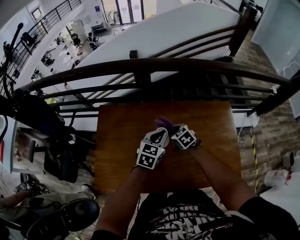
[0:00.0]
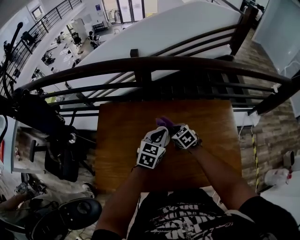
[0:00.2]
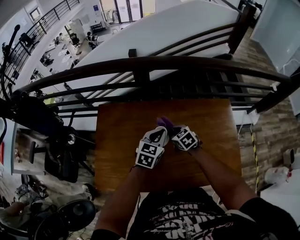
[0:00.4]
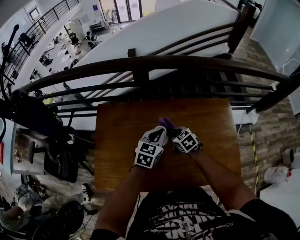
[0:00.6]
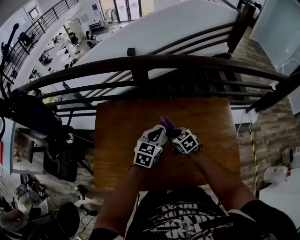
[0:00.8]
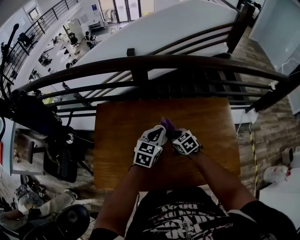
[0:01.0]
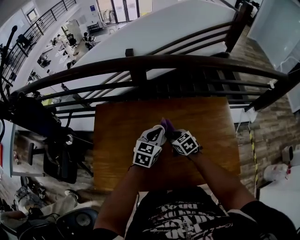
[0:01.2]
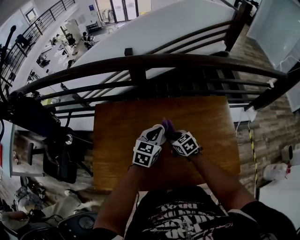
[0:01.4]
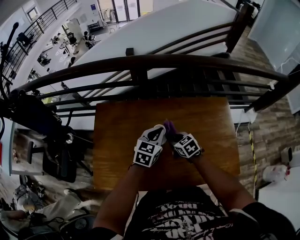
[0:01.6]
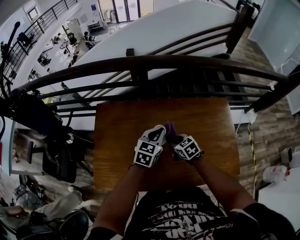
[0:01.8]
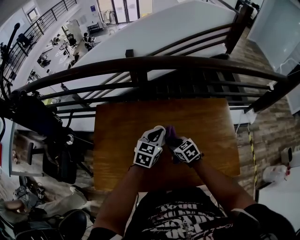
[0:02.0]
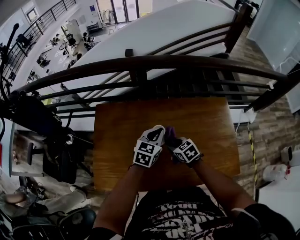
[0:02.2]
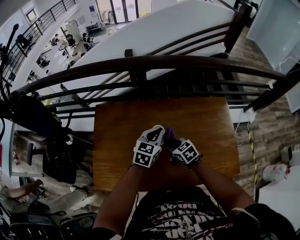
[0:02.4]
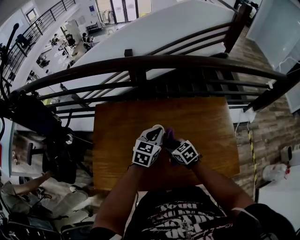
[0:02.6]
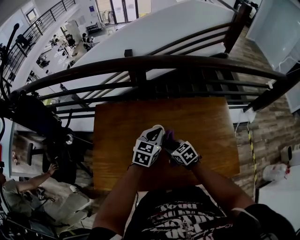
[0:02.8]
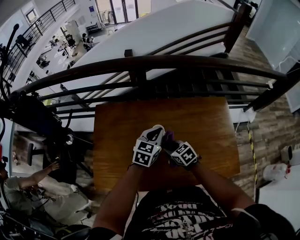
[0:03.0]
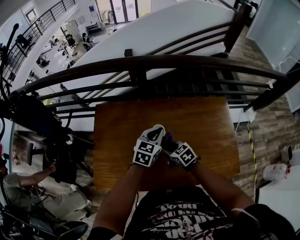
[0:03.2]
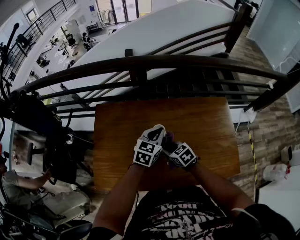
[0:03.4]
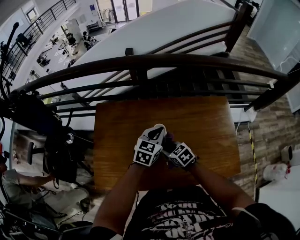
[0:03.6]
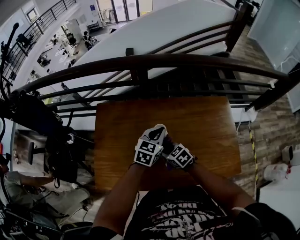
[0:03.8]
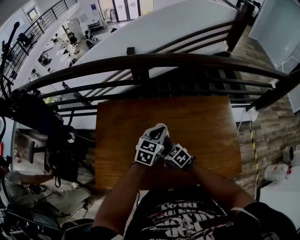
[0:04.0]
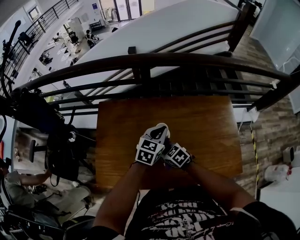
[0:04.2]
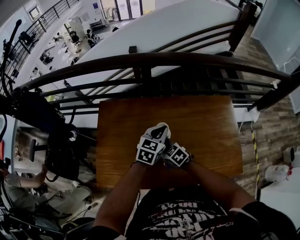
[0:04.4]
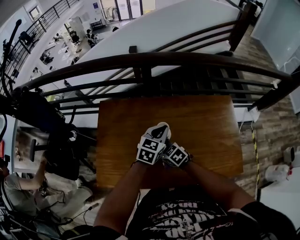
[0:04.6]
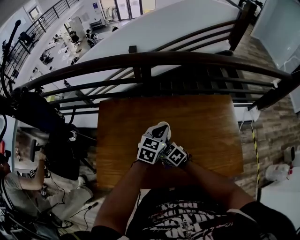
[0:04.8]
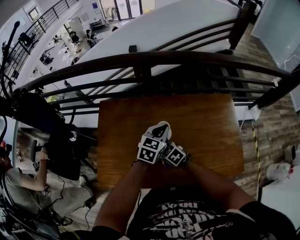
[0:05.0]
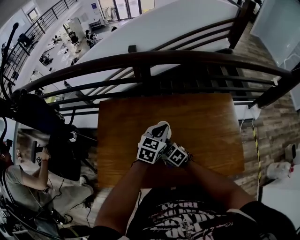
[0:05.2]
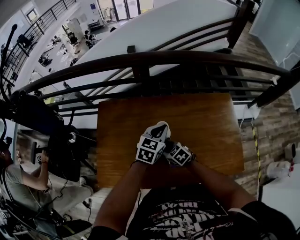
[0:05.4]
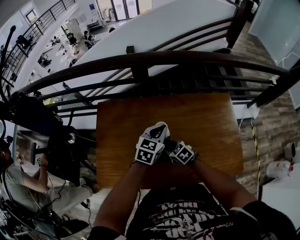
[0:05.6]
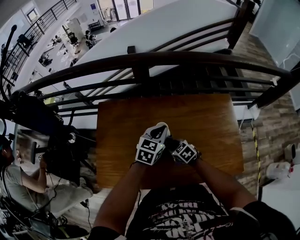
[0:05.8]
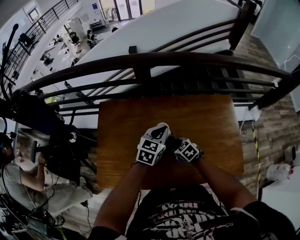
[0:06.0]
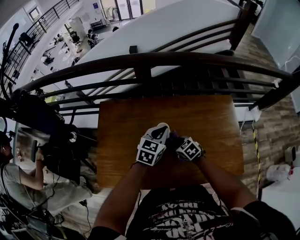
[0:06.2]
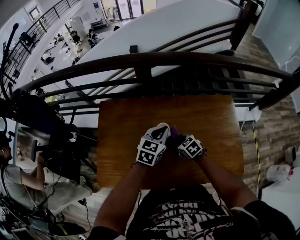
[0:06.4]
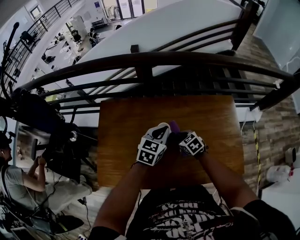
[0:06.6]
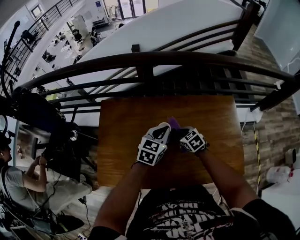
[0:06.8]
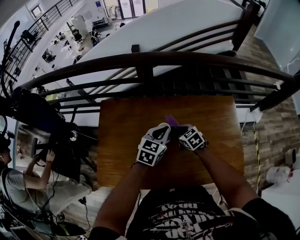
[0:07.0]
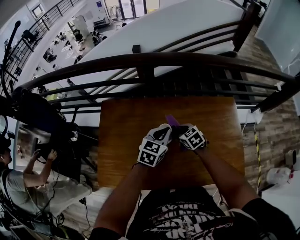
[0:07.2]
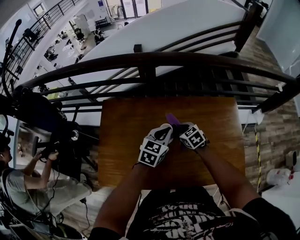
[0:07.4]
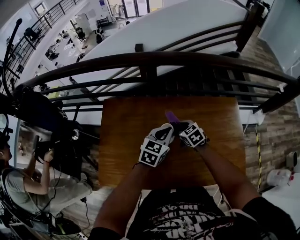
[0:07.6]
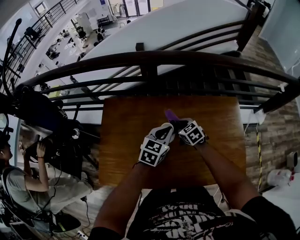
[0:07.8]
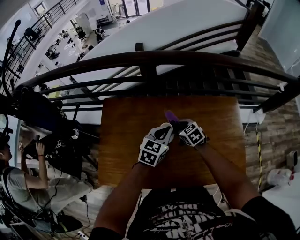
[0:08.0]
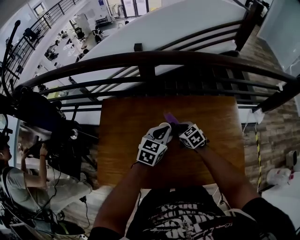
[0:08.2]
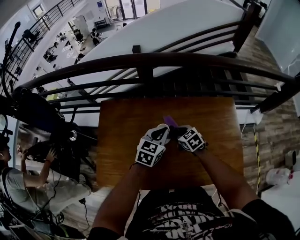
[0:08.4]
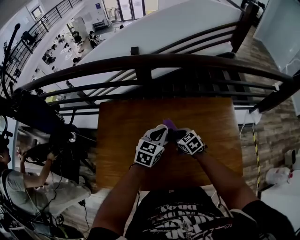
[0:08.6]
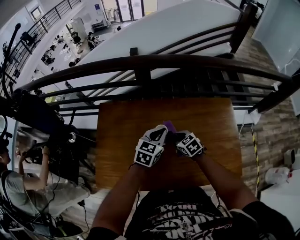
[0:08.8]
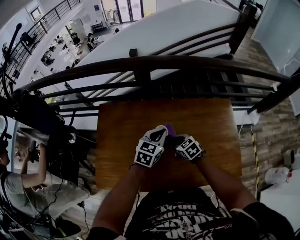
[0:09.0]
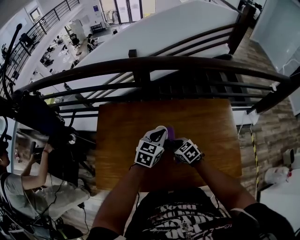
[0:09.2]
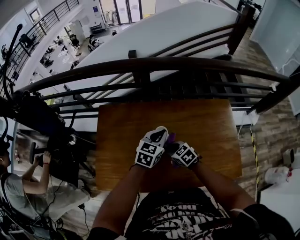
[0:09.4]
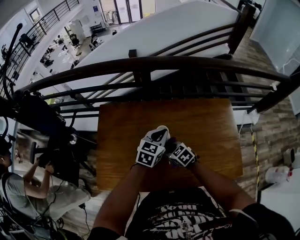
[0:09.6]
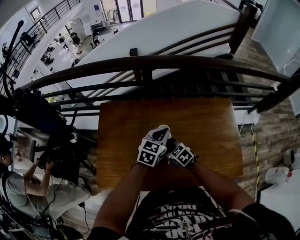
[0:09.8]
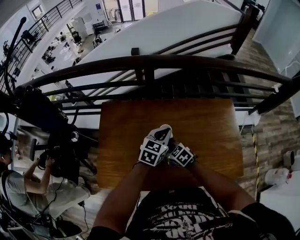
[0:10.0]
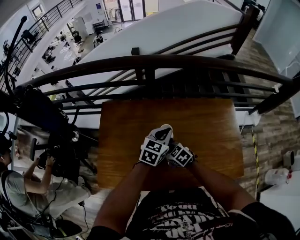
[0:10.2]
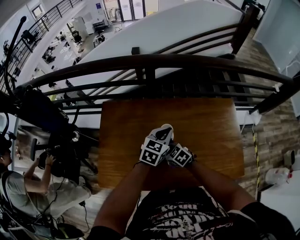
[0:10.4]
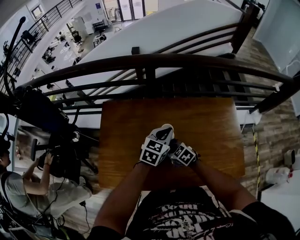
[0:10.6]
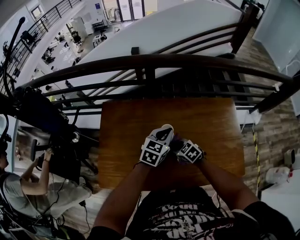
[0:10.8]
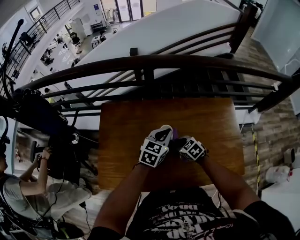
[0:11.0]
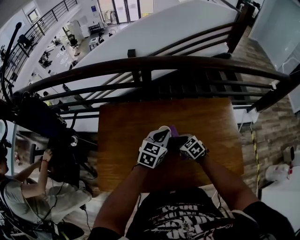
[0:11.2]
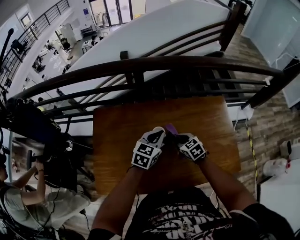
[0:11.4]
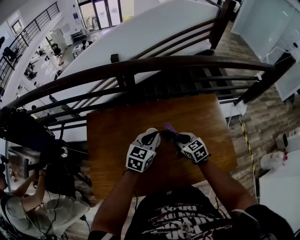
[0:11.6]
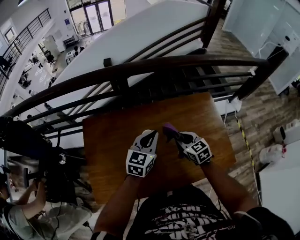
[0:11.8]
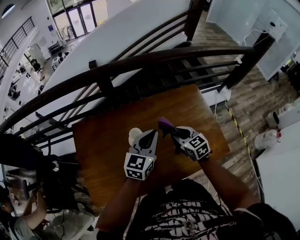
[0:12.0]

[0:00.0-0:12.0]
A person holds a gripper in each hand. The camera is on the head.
0:00.0 to 0:01.6: The right gripper heads backward, covering about 5 cm.
0:01.6 to 0:03.0: The right gripper moves some 5 cm.
0:03.0 to 0:04.4: The right gripper goes roughly 5 cm to the left.
0:04.4 to 0:06.0: The right gripper moves to the right, approximately 10 cm.
0:06.0 to 0:07.6: The right gripper moves forward, approximately 10 cm.
0:07.6 to 0:09.0: The right gripper shifts approximately 5 cm backward.
0:09.0 to 0:10.4: The right gripper goes some 10 cm to the left.
0:10.4 to 0:12.0: The left gripper heads upward, covering roughly 10 cm; the right gripper moves about 25 cm, and turns by about 40 degrees.

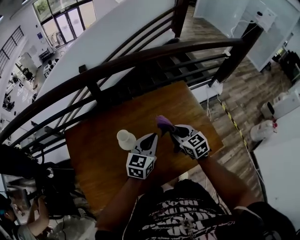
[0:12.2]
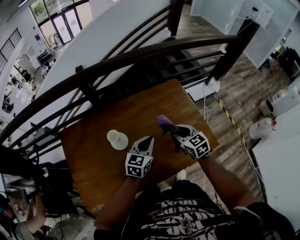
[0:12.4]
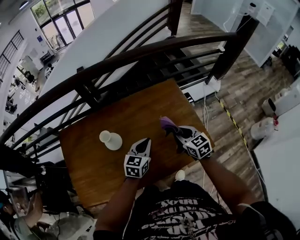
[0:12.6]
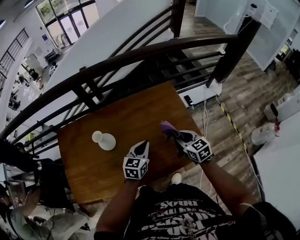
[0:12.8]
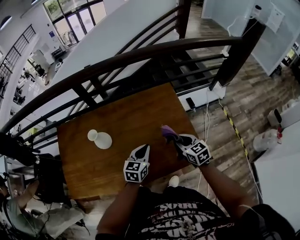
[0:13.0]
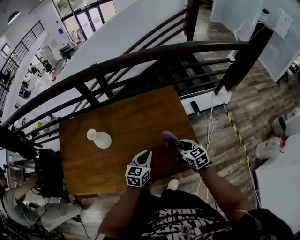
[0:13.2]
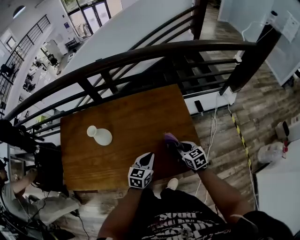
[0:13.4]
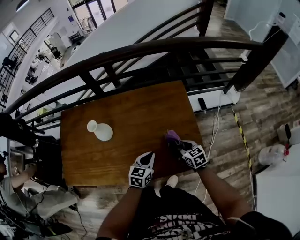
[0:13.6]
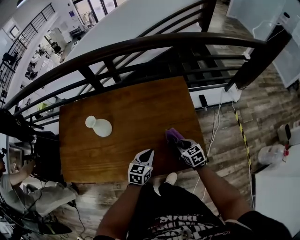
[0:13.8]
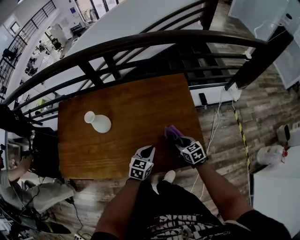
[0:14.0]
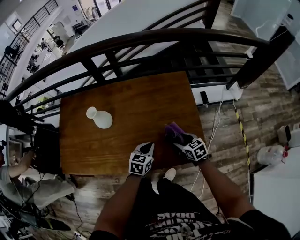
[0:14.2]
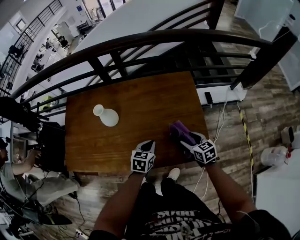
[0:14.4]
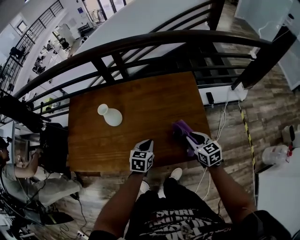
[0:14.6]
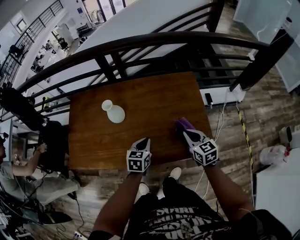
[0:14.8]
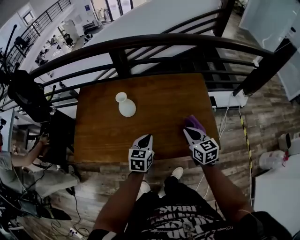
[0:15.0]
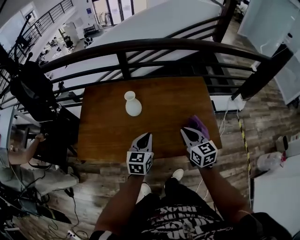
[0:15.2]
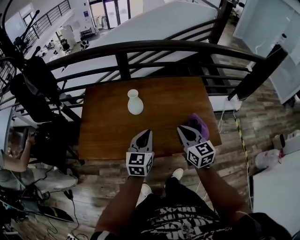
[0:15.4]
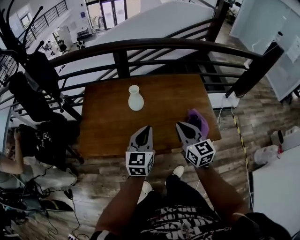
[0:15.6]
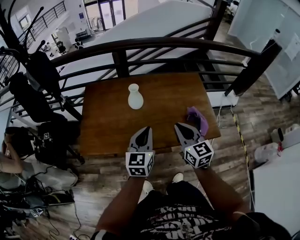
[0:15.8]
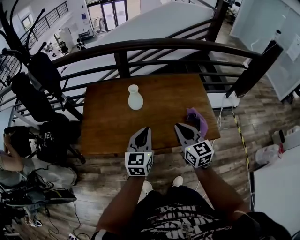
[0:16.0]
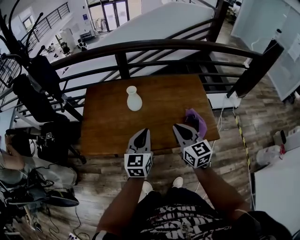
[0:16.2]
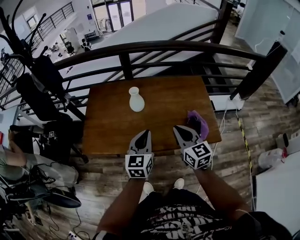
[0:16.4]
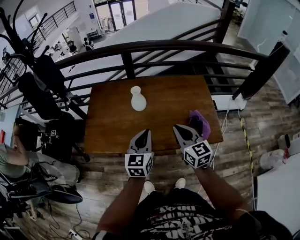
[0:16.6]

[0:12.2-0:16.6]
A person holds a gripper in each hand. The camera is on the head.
0:12.2 to 0:13.6: Both grippers move to the right and downward, approximately 25 cm. The left gripper swivels approximately 20 degrees.
0:13.6 to 0:15.2: The left gripper is displaced to the left and upward by about 20 cm. The right gripper heads upward and to the left, covering approximately 25 cm, changes its angle by some 20 degrees, and opens, then closes again.
0:15.2 to 0:16.6: The left gripper moves upward and backward, approximately 10 cm; the right gripper travels upward, to the left and backward by some 10 cm.

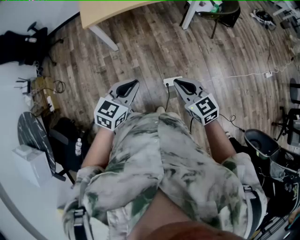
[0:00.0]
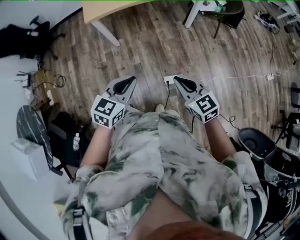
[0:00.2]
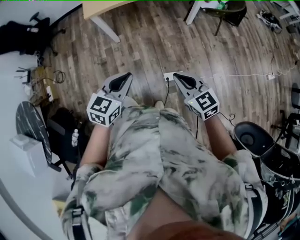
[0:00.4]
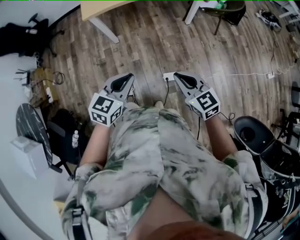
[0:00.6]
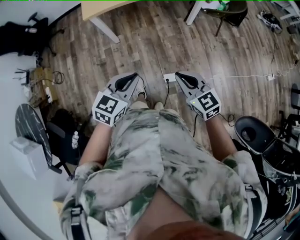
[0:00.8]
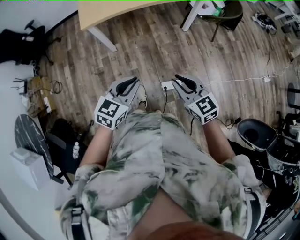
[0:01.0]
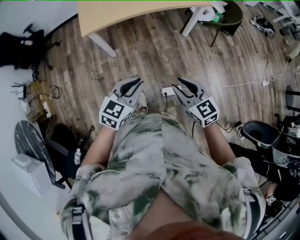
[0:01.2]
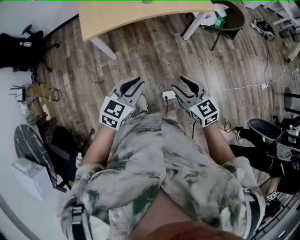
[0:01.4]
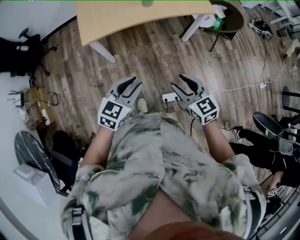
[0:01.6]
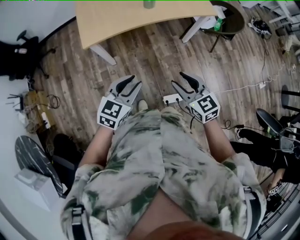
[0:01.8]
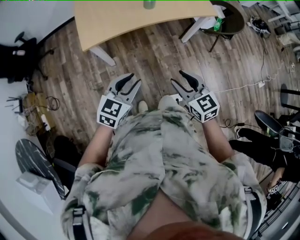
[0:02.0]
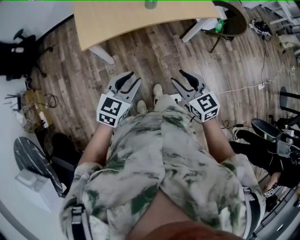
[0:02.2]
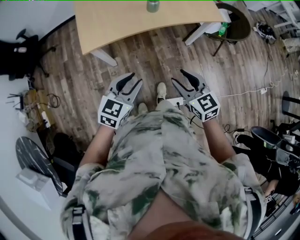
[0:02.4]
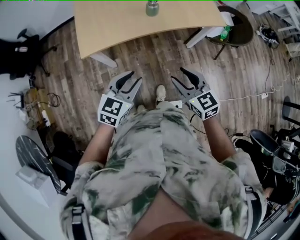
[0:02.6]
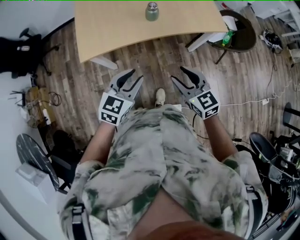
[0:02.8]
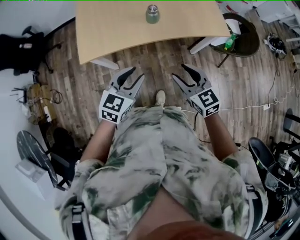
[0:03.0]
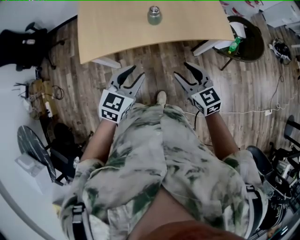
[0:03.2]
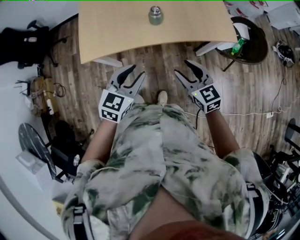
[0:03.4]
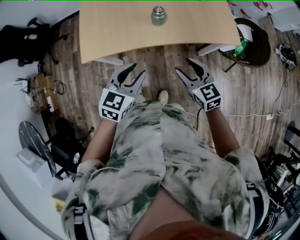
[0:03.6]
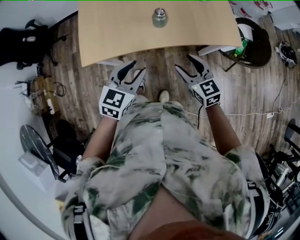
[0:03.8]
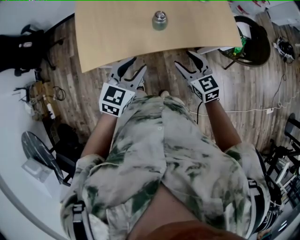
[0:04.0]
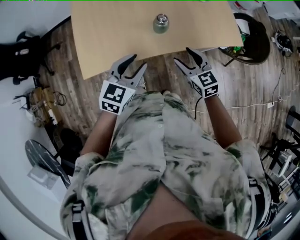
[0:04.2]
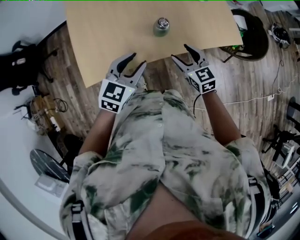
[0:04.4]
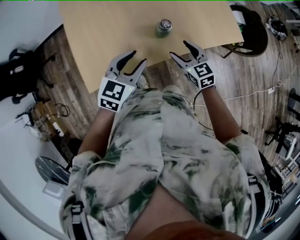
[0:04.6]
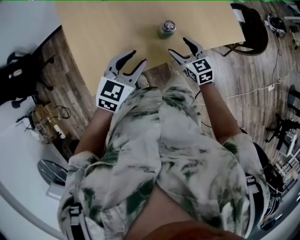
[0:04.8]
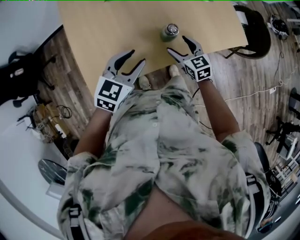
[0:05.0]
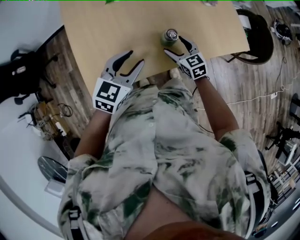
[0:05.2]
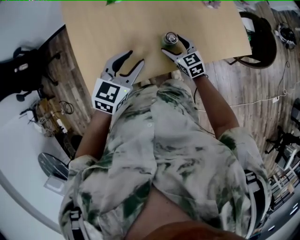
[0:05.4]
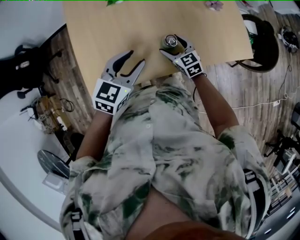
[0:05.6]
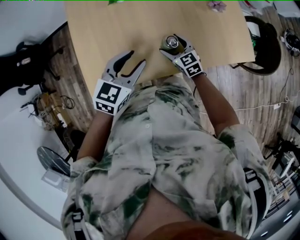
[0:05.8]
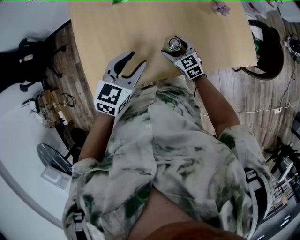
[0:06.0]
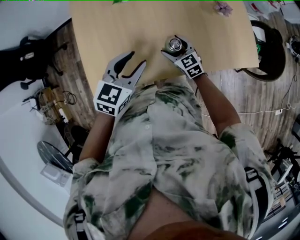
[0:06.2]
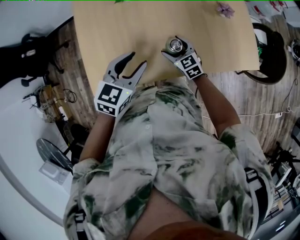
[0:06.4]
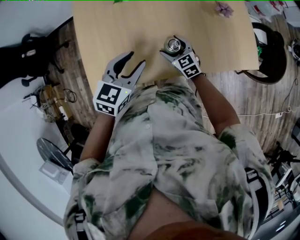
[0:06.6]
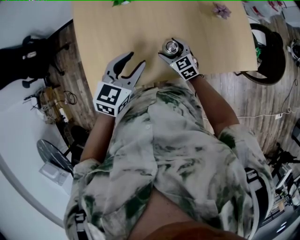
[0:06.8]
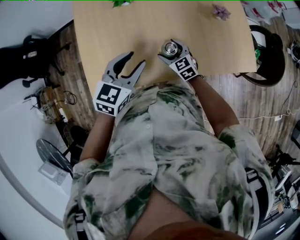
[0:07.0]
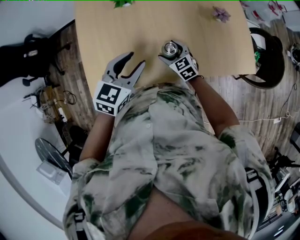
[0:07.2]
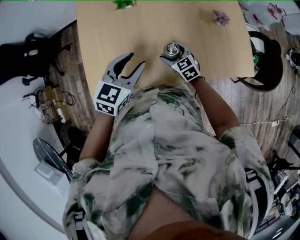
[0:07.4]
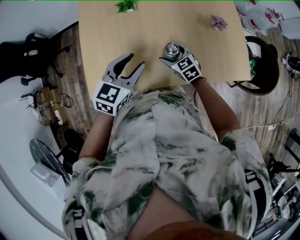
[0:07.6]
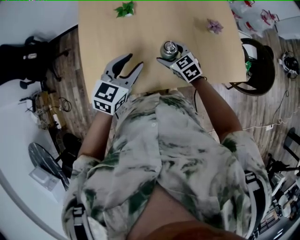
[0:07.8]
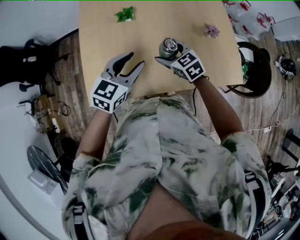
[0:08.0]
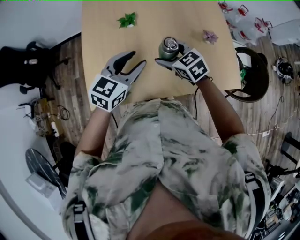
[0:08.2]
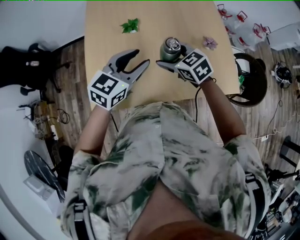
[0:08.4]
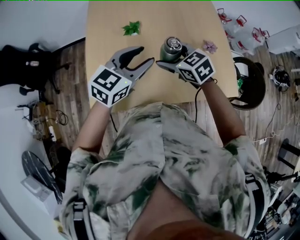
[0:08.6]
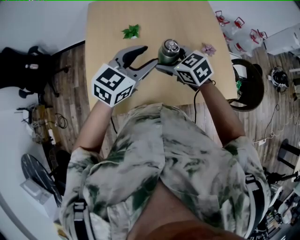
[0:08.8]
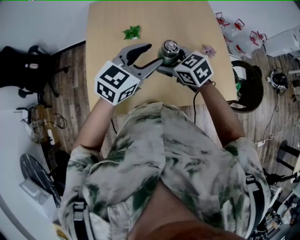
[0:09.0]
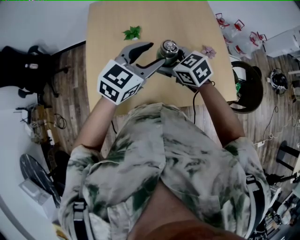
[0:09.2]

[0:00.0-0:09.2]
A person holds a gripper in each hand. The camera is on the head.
0:00.0 to 0:01.6: The two grippers go approximately 20 cm forward. The right gripper opens.
0:01.6 to 0:03.0: The two grippers go roughly 25 cm forward.
0:03.0 to 0:04.6: The left gripper moves forward, roughly 25 cm; the right gripper shifts some 30 cm forward and downward.
0:04.6 to 0:06.2: The right gripper goes roughly 15 cm forward, downward and to the left; the left gripper heads forward, covering some 10 cm.
0:06.2 to 0:07.6: There are only small adjustments of the grippers.
0:07.6 to 0:09.2: The left gripper heads upward, covering some 15 cm; the right gripper is displaced upward by some 25 cm.
